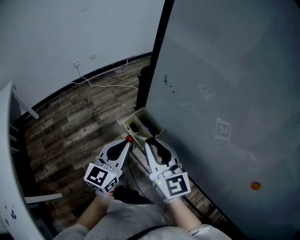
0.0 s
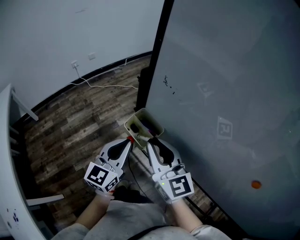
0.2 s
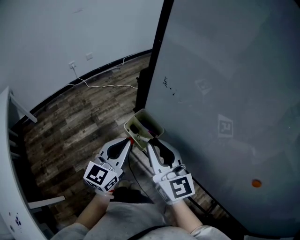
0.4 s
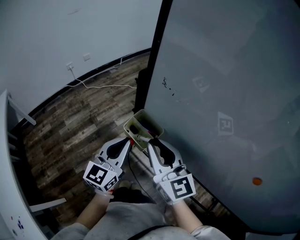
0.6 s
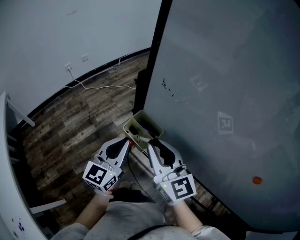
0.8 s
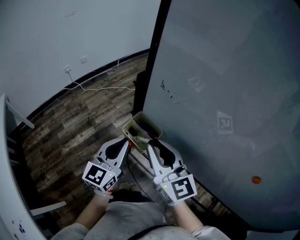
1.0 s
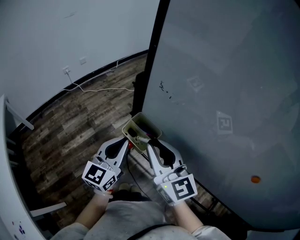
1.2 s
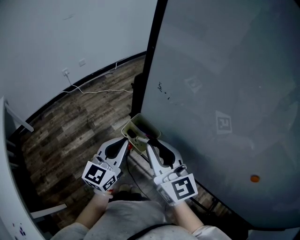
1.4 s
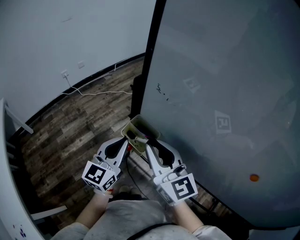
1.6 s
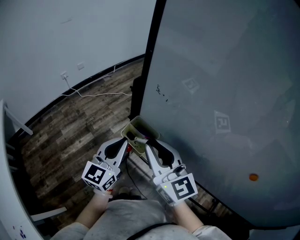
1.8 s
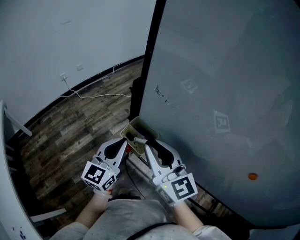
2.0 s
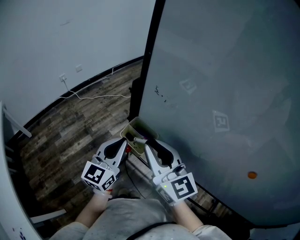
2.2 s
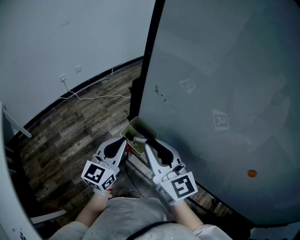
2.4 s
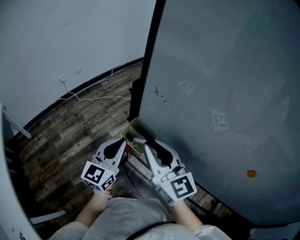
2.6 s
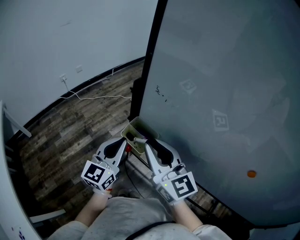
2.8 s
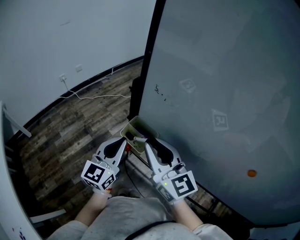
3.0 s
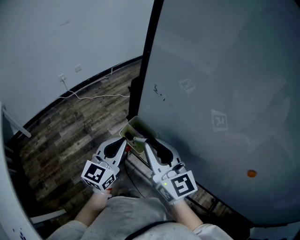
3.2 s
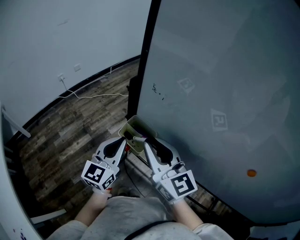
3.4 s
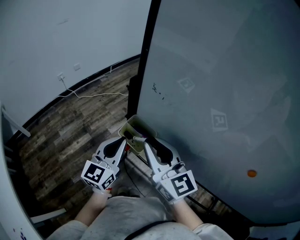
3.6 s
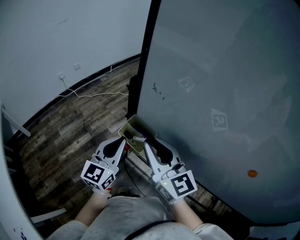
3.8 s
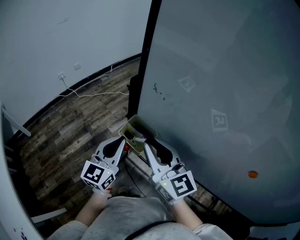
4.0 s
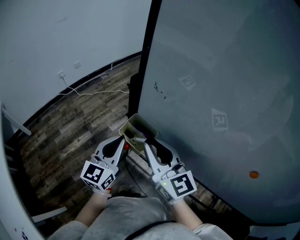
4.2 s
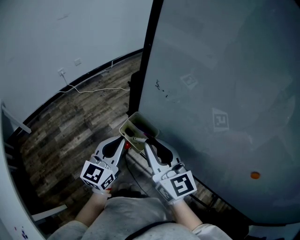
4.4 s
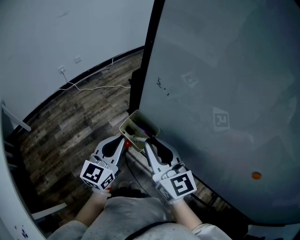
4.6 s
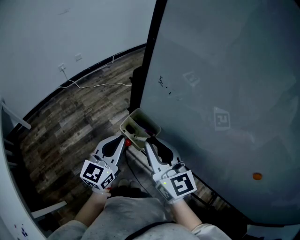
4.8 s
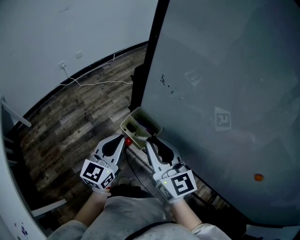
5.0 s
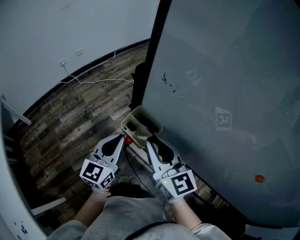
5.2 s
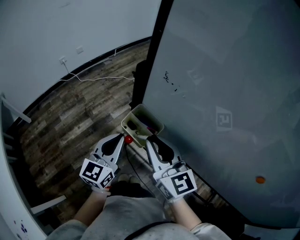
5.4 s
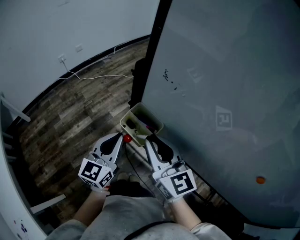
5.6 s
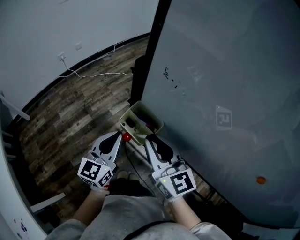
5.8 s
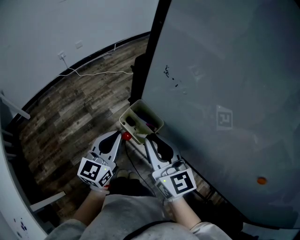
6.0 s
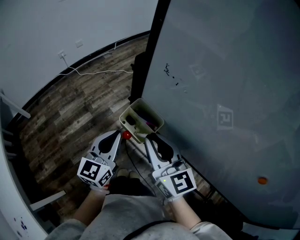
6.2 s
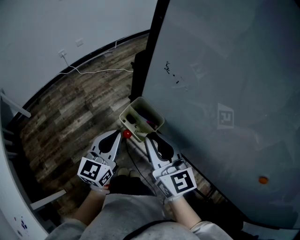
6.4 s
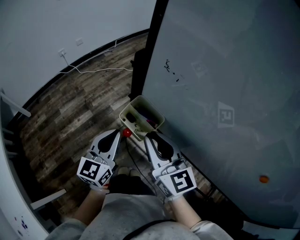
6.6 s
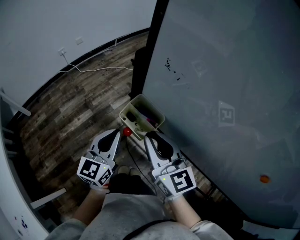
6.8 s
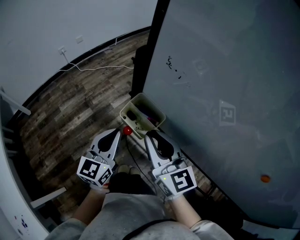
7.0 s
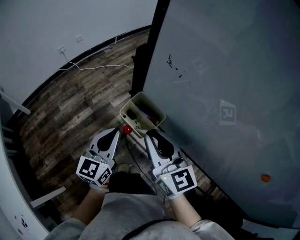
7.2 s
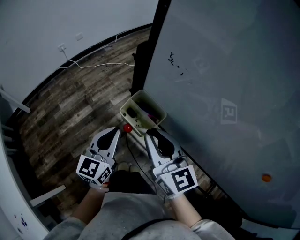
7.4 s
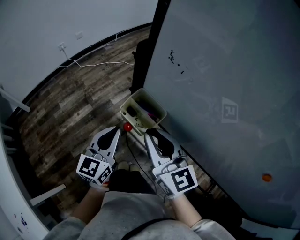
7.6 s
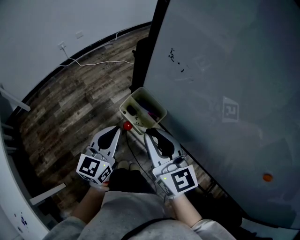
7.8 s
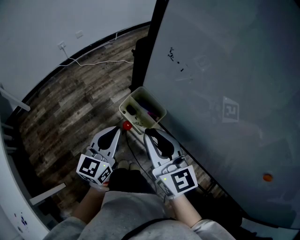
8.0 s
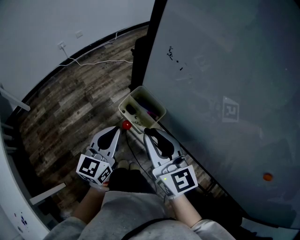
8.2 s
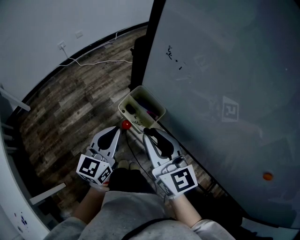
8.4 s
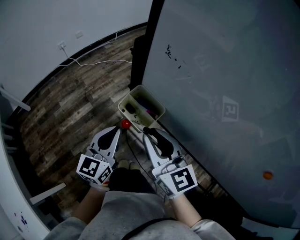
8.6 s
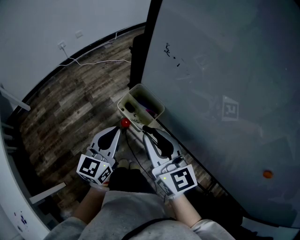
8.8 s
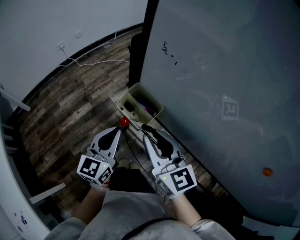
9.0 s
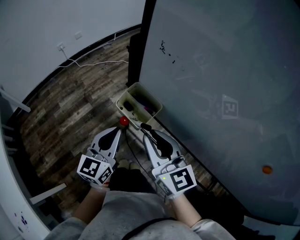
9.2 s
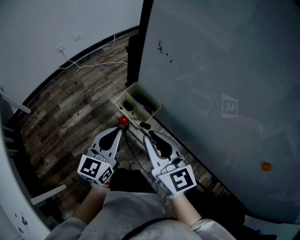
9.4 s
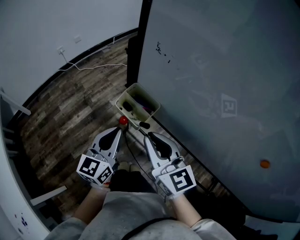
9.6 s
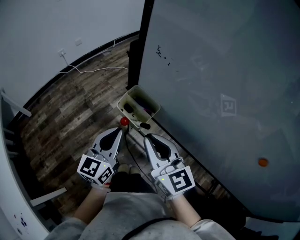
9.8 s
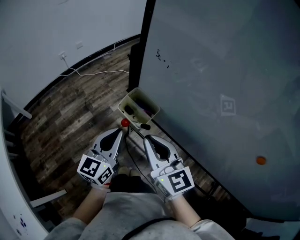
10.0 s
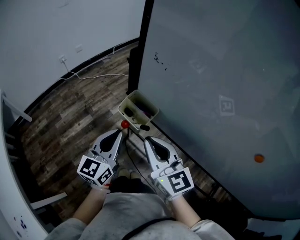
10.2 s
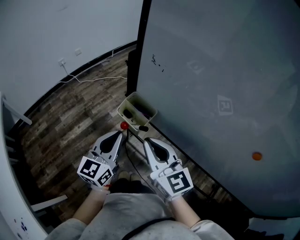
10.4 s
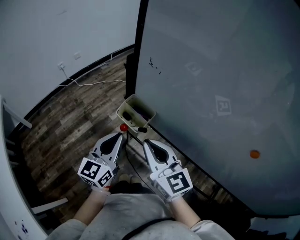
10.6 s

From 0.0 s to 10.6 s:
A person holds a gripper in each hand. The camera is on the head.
From 0.0 s to 1.6 s: The grippers stay close to where they were, moving slightly.
From 1.6 s to 3.0 s: The two grippers keep their place.
From 3.0 s to 6.0 s: The grippers stay close to where they were, moving slightly.
From 6.0 s to 9.0 s: The grippers move only a little.
From 9.0 s to 10.6 s: The left gripper shifts about 5 cm upward.

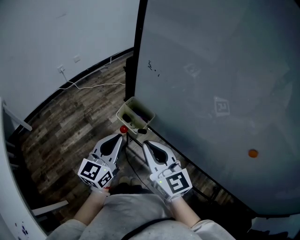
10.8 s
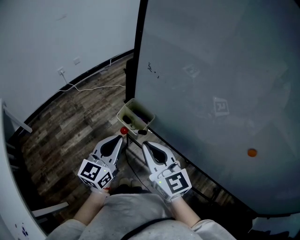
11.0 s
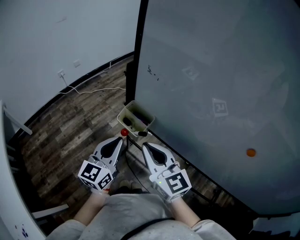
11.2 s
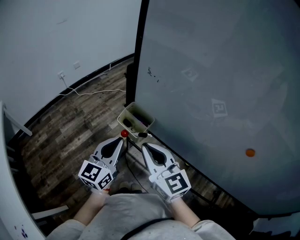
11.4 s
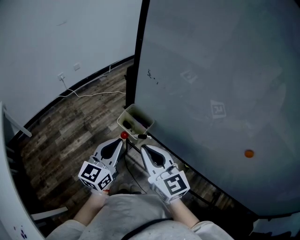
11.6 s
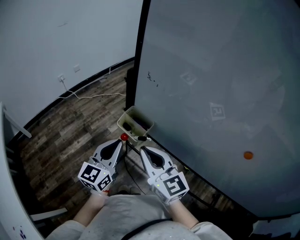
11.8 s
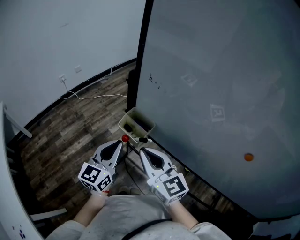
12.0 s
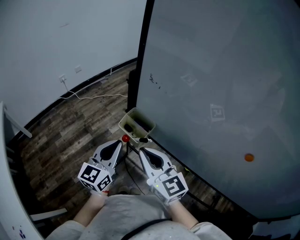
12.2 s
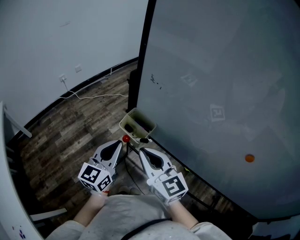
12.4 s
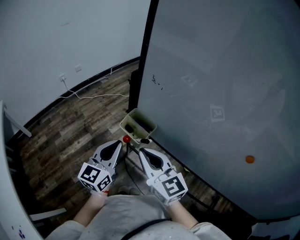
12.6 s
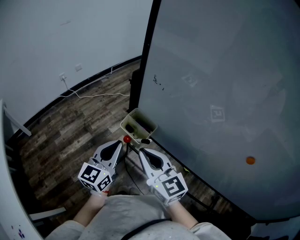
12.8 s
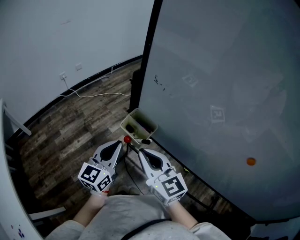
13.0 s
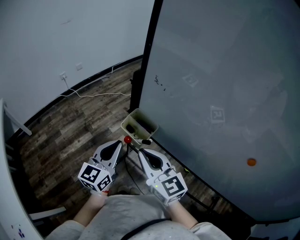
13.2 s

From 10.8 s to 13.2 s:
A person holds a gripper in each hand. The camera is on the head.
From 10.8 s to 13.2 s: The grippers make only small movements.

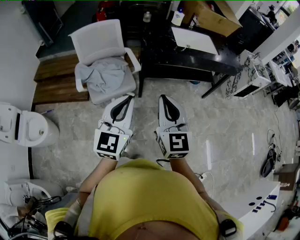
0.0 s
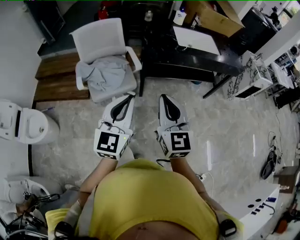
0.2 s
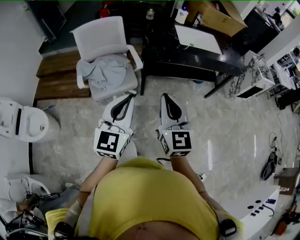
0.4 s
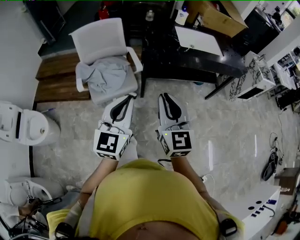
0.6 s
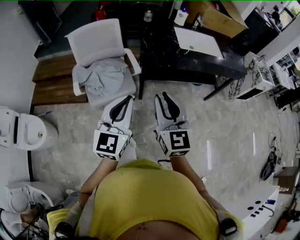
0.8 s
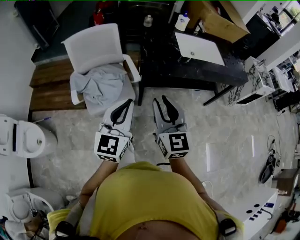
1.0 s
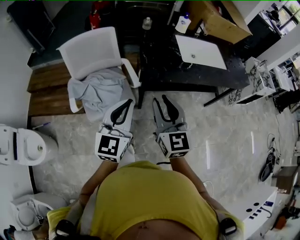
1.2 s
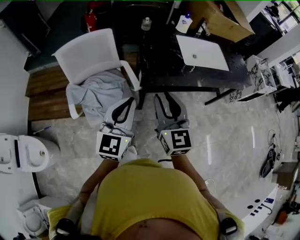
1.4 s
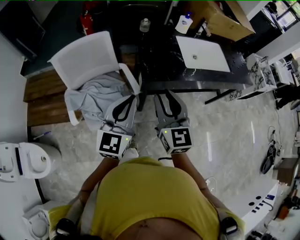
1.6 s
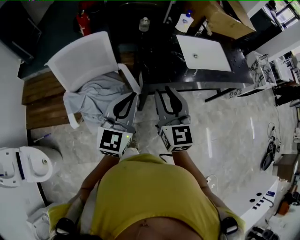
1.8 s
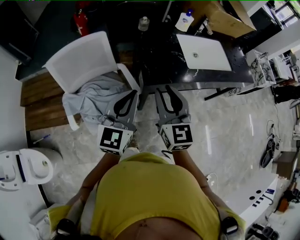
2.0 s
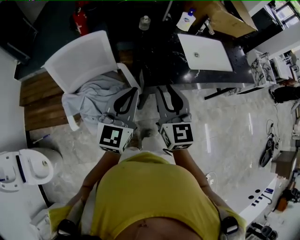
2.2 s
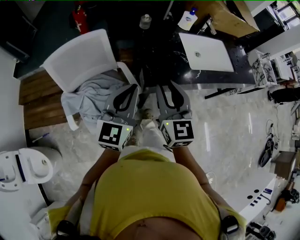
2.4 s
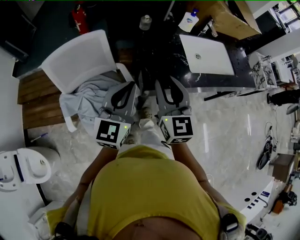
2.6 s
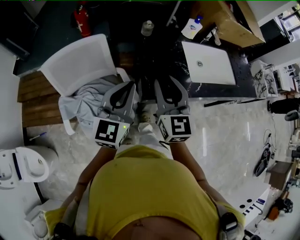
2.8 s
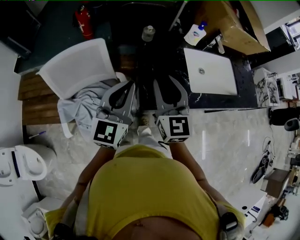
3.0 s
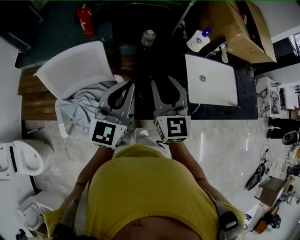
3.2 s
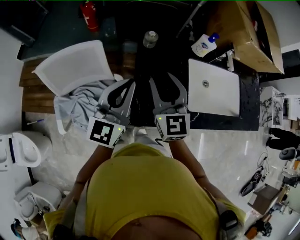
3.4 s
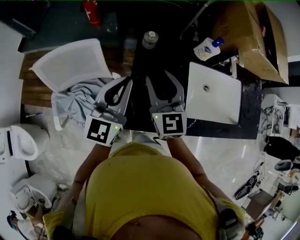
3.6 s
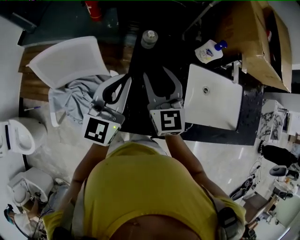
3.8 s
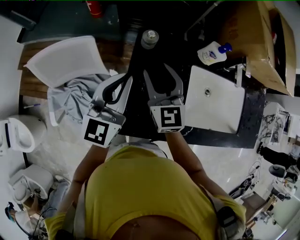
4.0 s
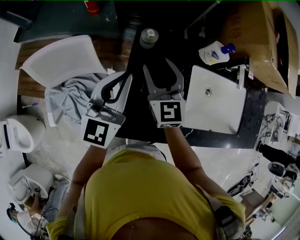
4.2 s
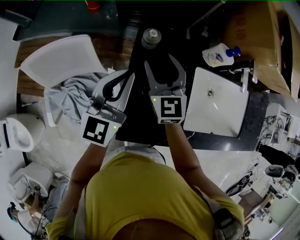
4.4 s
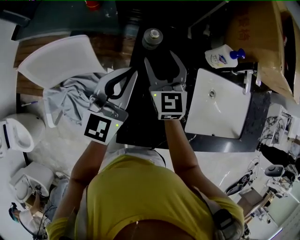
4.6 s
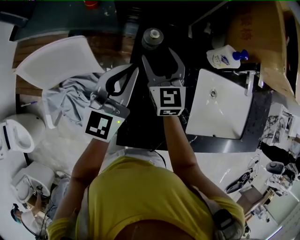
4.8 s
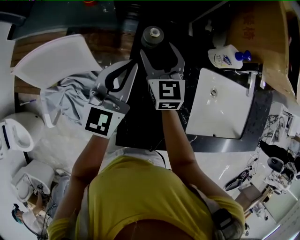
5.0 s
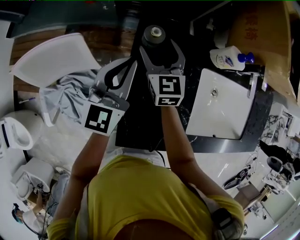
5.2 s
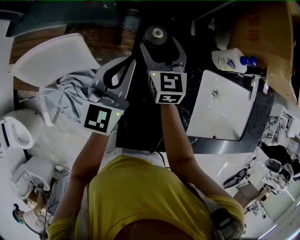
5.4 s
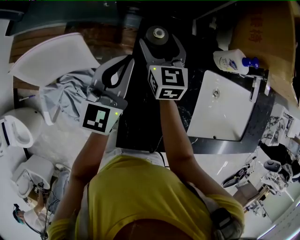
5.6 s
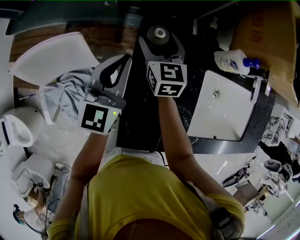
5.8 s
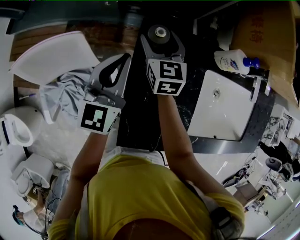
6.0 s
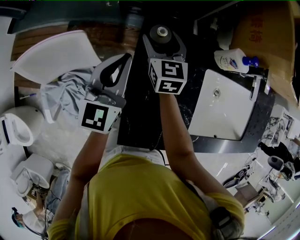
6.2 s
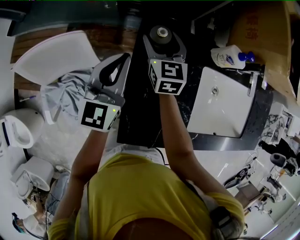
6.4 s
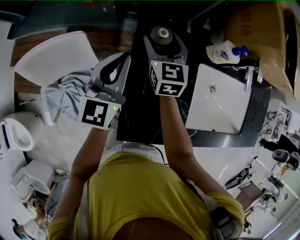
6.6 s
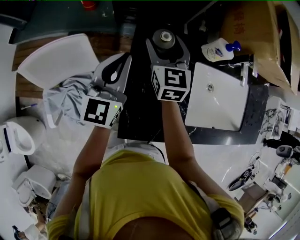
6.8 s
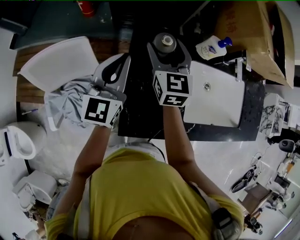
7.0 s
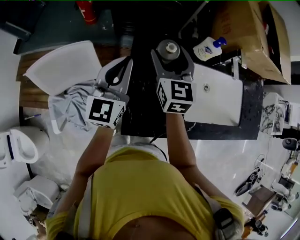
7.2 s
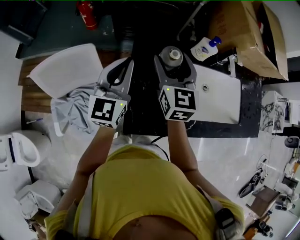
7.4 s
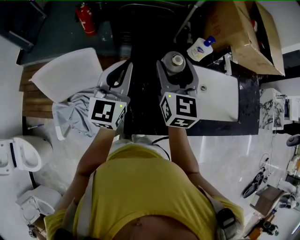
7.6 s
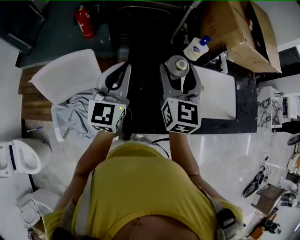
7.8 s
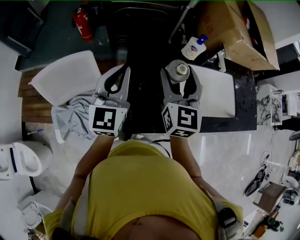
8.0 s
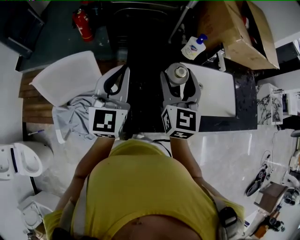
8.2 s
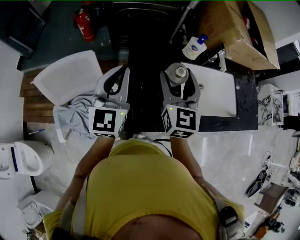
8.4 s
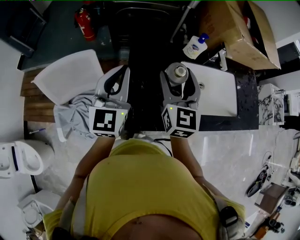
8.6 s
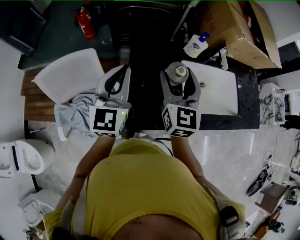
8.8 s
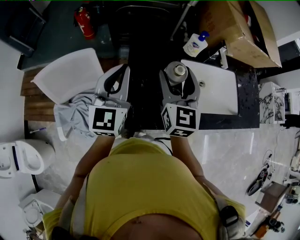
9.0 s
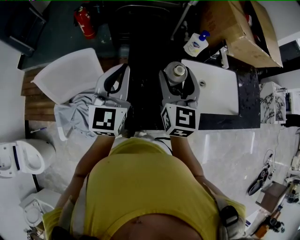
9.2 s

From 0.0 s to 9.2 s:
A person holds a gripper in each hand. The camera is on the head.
From 0.0 s to 1.6 s: Both grippers move forward, approximately 35 cm. The right gripper opens up.
From 1.6 s to 3.0 s: Both grippers travel together forward, some 20 cm.
From 3.0 s to 4.6 s: The left gripper shifts roughly 25 cm forward; the right gripper travels forward and downward by roughly 30 cm, and opens.
From 4.6 s to 6.2 s: The right gripper heads forward and downward, covering roughly 10 cm; the left gripper travels forward by about 5 cm.
From 6.2 s to 7.6 s: The left gripper is displaced upward and backward by roughly 15 cm. Meanwhile the right gripper is displaced upward, backward and to the right by some 30 cm.
From 7.6 s to 9.2 s: The right gripper is displaced backward by roughly 5 cm.

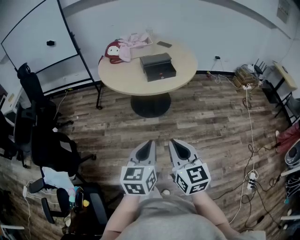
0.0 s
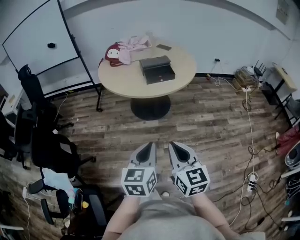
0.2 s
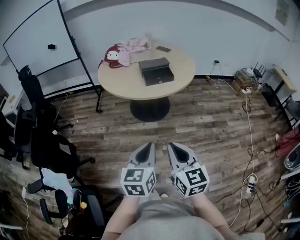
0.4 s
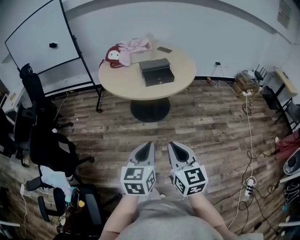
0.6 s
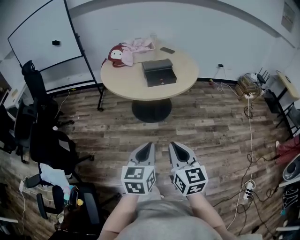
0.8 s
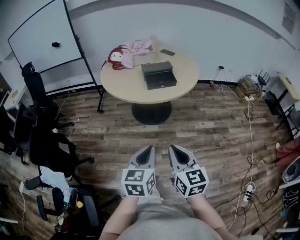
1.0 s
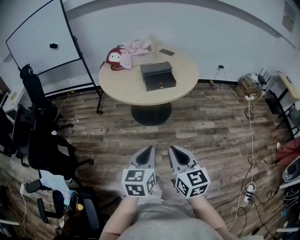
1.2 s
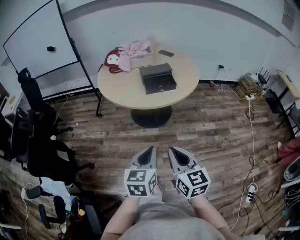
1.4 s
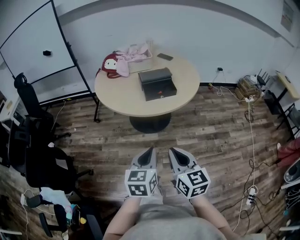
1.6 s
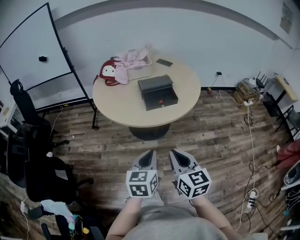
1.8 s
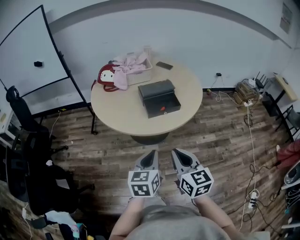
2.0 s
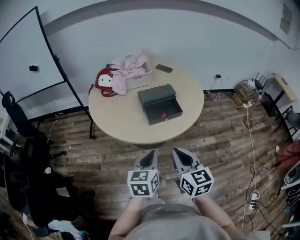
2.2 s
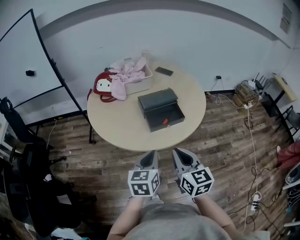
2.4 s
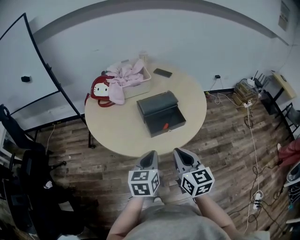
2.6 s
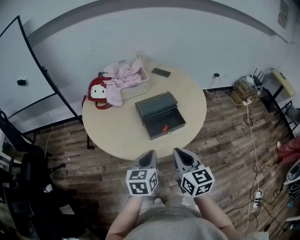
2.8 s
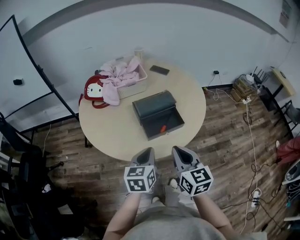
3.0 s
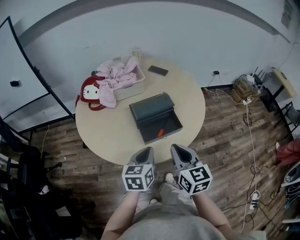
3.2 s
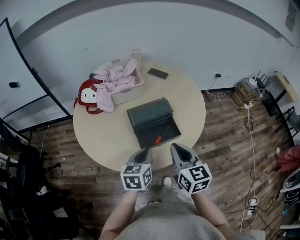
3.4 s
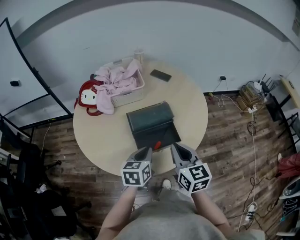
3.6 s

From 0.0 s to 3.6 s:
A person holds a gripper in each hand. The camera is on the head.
From 0.0 s to 1.8 s: The grippers both shift forward by roughly 20 cm.
From 1.8 s to 3.6 s: The grippers both shift forward by some 35 cm.
